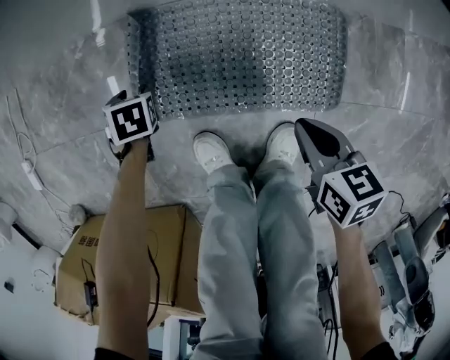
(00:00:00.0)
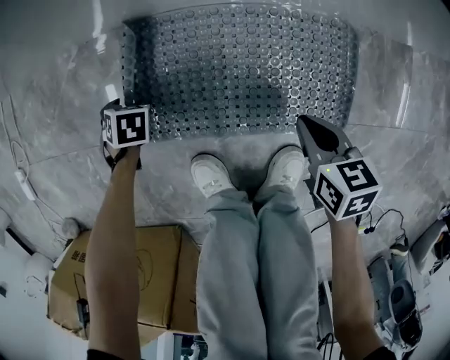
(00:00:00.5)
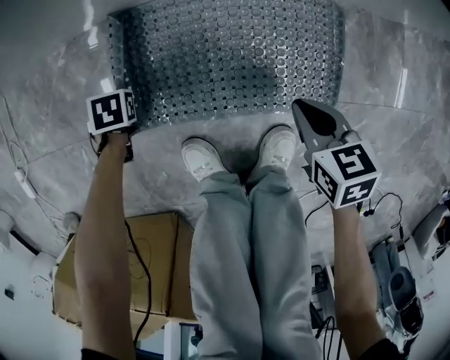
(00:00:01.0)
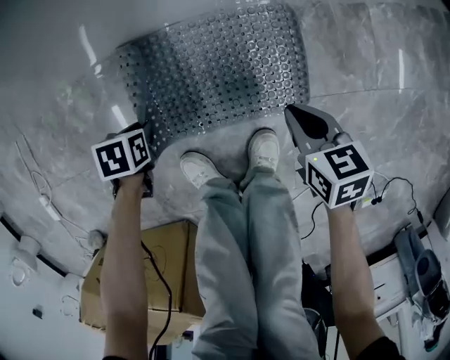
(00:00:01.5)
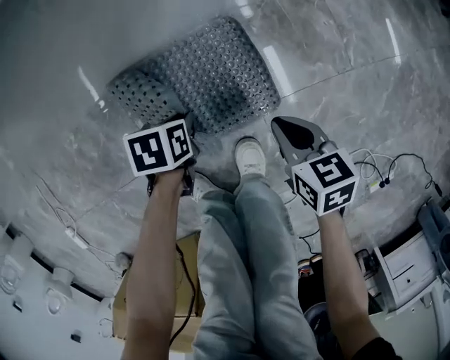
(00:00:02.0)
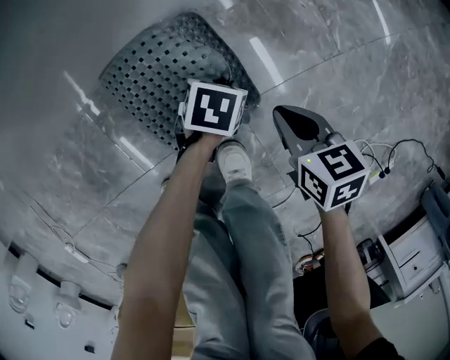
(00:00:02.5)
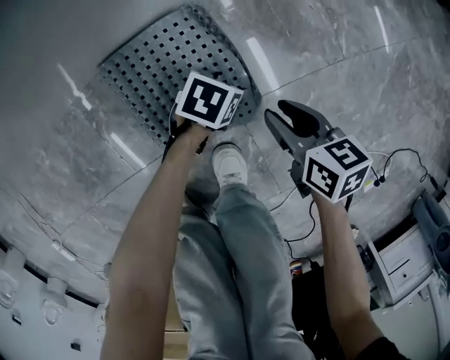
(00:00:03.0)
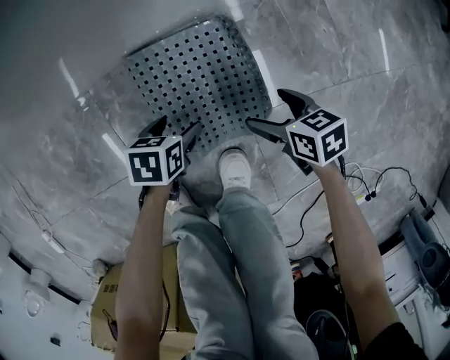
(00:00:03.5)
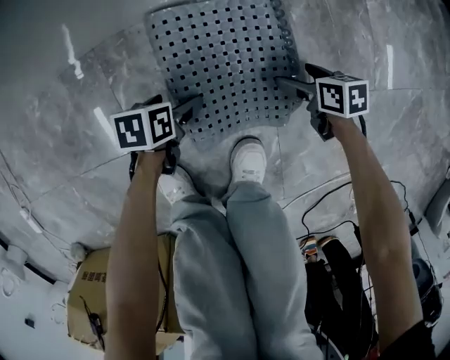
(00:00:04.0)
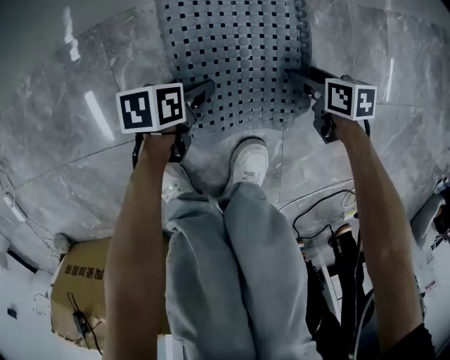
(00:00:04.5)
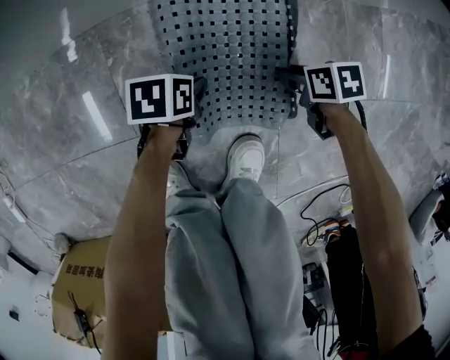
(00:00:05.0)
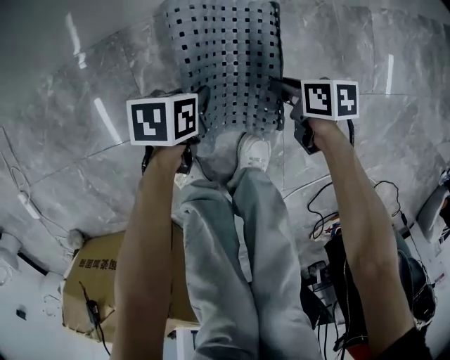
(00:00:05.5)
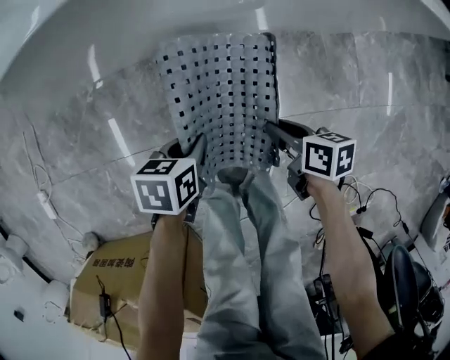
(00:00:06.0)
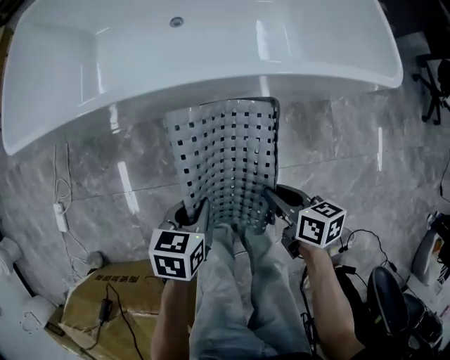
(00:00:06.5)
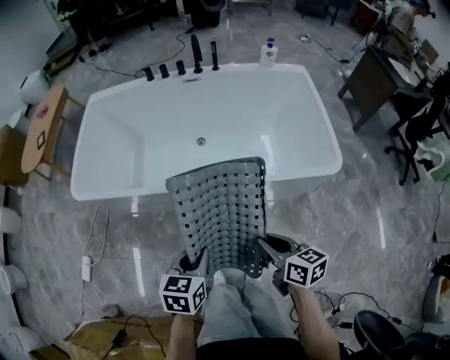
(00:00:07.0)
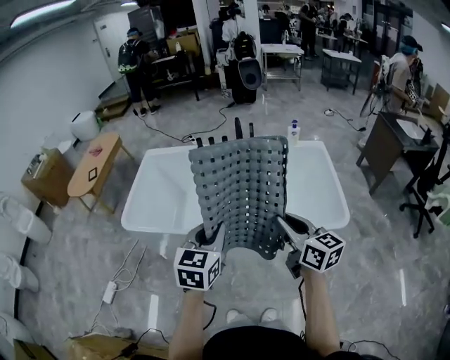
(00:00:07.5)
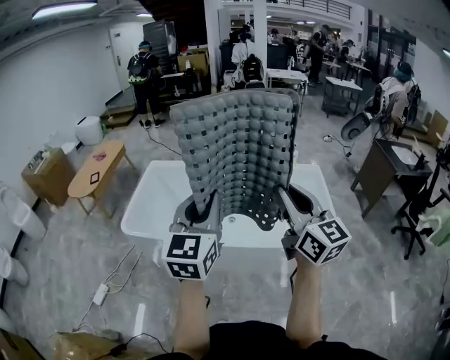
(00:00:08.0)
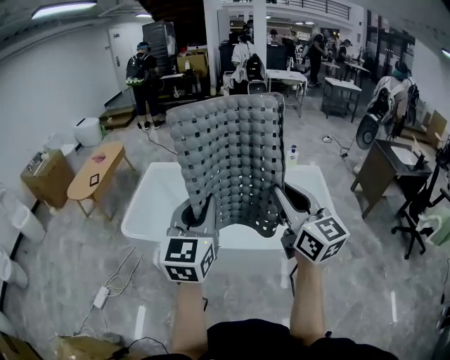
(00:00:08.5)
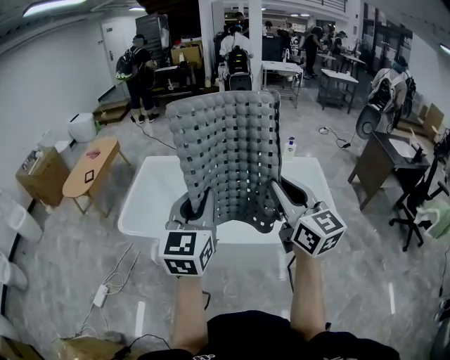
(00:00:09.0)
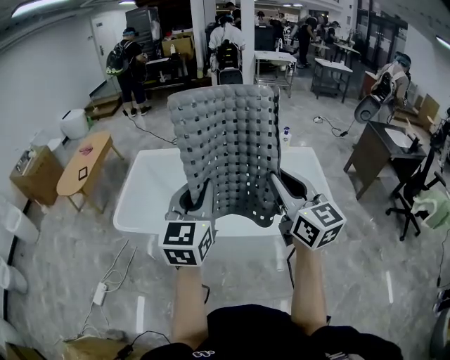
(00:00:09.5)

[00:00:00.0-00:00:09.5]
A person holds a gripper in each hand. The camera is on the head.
00:00:00.0 to 00:00:02.0: The left gripper ends up about 35 cm from where it was, and changes its angle by some 30 degrees; the right gripper goes downward and returns, about 10 cm each way.
00:00:02.0 to 00:00:04.0: The right gripper moves downward, some 25 cm, and opens its fingers, while the left gripper goes up and down, about 15 cm each way, reversing 2 times, and opens up.
00:00:04.0 to 00:00:05.5: The left gripper goes some 10 cm upward, and closes. The right gripper shifts by roughly 10 cm, and closes up.
00:00:05.5 to 00:00:07.5: Both grippers travel together upward, some 90 cm. The left gripper points its fingers roughly 40 degrees further upward; the right gripper angles its fingers upward, by about 50 degrees.
00:00:07.5 to 00:00:09.5: Both grippers travel together upward, about 15 cm. The left gripper turns by roughly 20 degrees, while the right gripper rotates roughly 20 degrees.

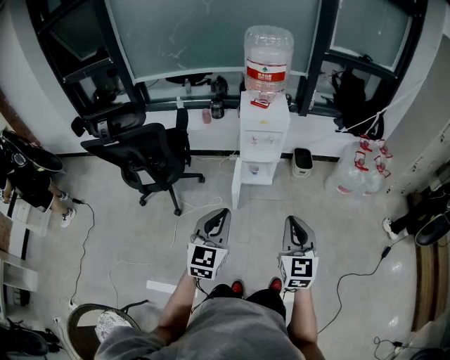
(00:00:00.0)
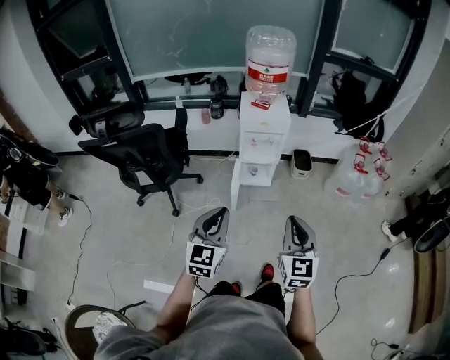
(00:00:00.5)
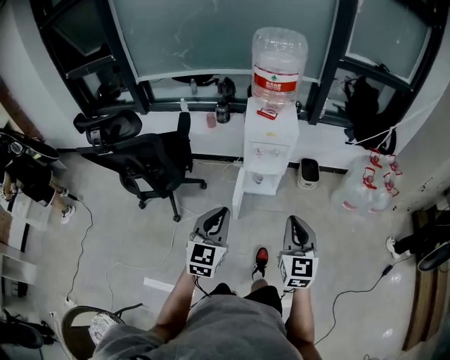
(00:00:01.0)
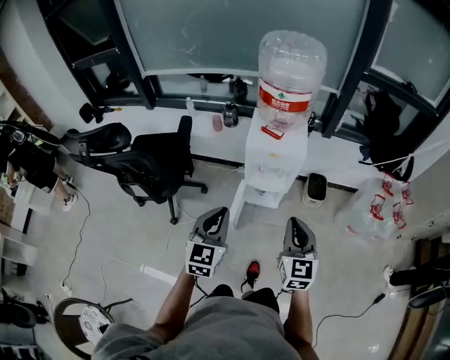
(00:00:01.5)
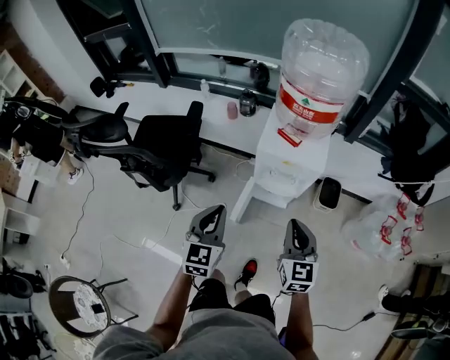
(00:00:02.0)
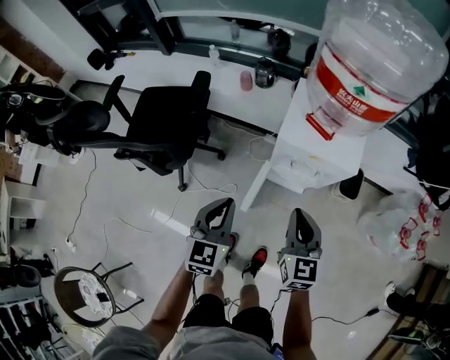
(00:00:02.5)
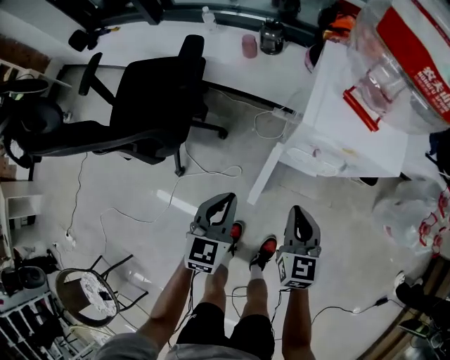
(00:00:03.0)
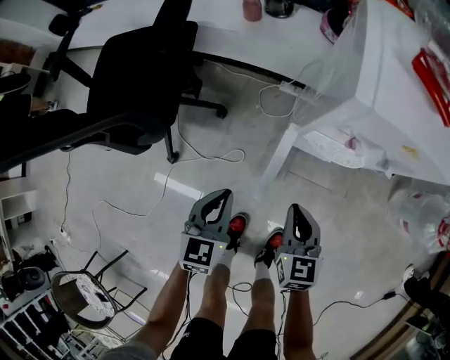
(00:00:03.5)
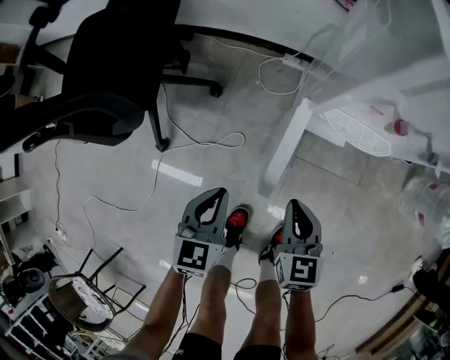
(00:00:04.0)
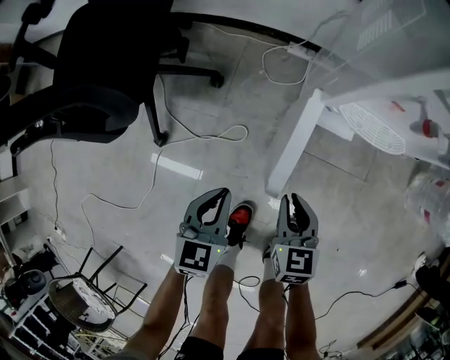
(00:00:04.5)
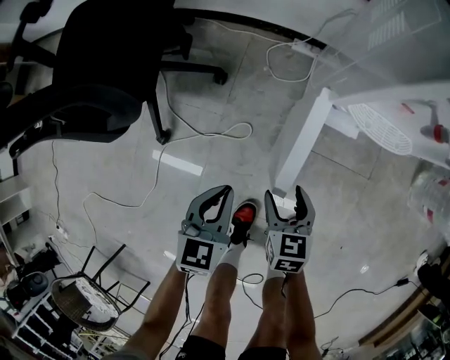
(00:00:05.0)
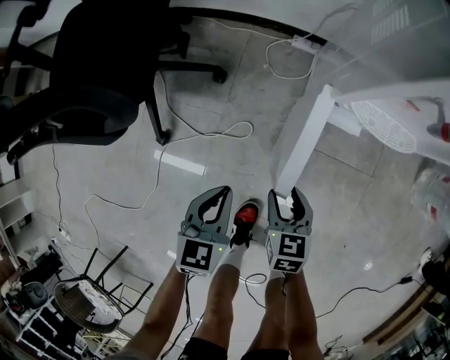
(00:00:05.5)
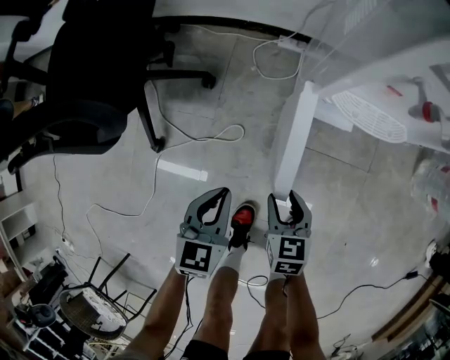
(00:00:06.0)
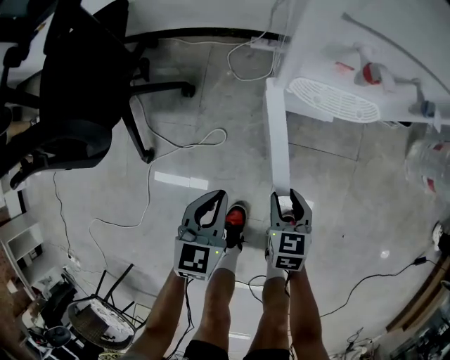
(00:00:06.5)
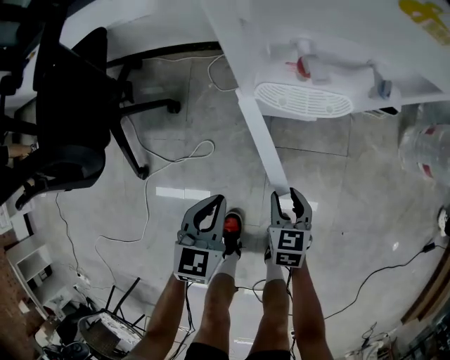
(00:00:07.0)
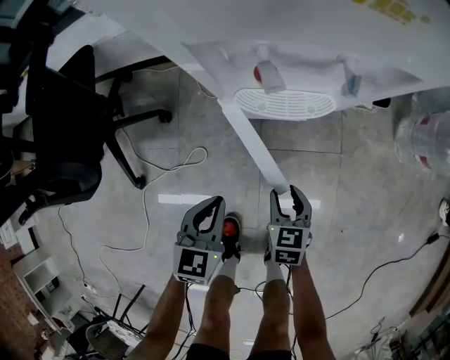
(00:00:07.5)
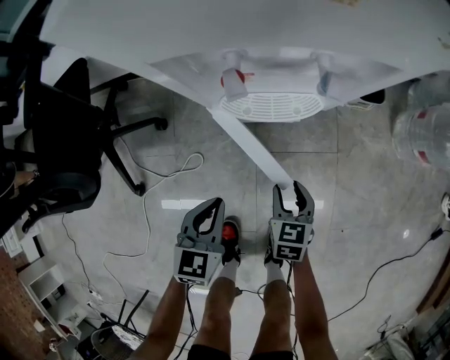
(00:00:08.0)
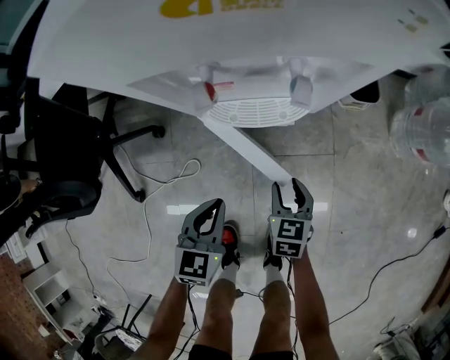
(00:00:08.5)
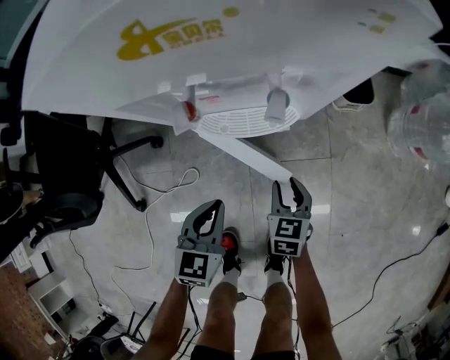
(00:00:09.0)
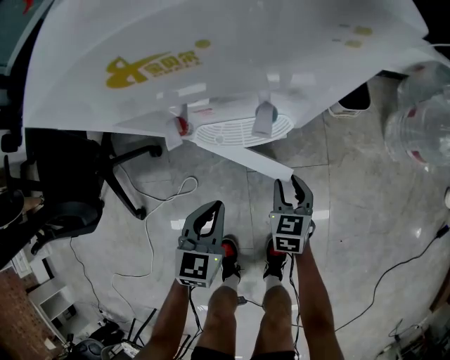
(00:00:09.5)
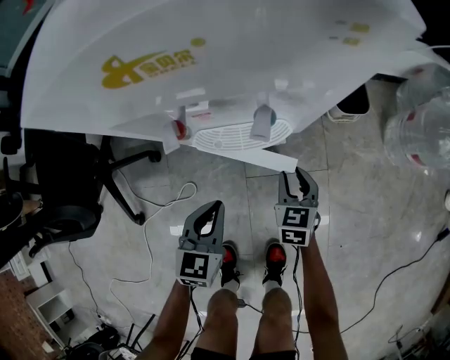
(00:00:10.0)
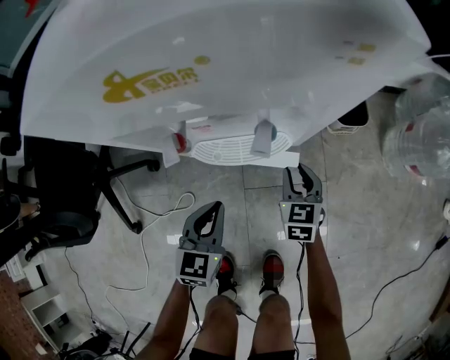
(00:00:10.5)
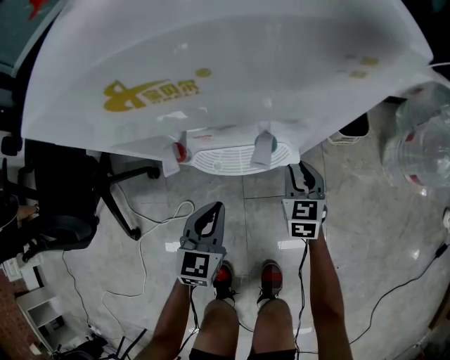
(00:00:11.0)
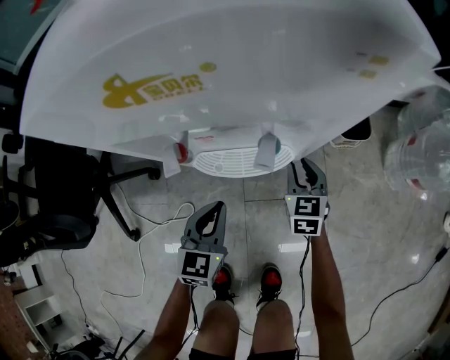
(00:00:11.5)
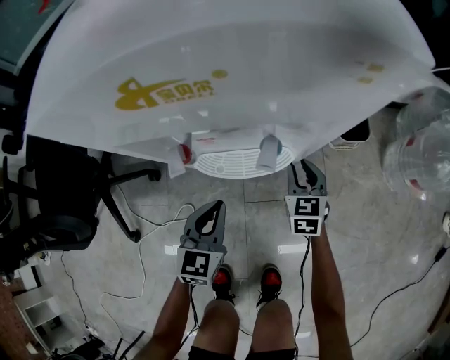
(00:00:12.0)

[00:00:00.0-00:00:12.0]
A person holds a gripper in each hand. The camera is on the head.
00:00:00.0 to 00:00:02.0: Both grippers move forward, about 35 cm. The left gripper turns by about 20 degrees.
00:00:02.0 to 00:00:04.0: The grippers both shift downward by about 50 cm. The left gripper changes its angle by roughly 20 degrees, while the right gripper rotates about 20 degrees.
00:00:04.0 to 00:00:06.0: The left gripper heads downward, covering roughly 5 cm. The right gripper travels downward by about 10 cm, and opens its fingers.
00:00:06.0 to 00:00:08.0: The two grippers go approximately 15 cm to the right.
00:00:08.0 to 00:00:10.0: The right gripper shifts roughly 10 cm forward and to the right. The left gripper heads forward, covering about 5 cm.
00:00:10.0 to 00:00:12.0: The right gripper travels forward by approximately 10 cm. The left gripper travels forward by approximately 5 cm.

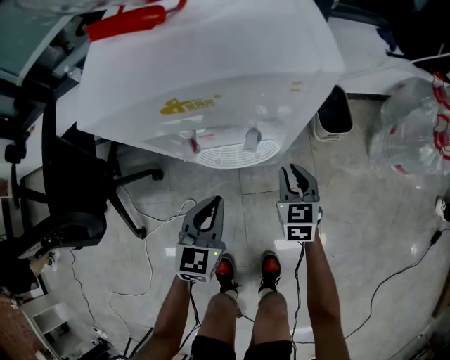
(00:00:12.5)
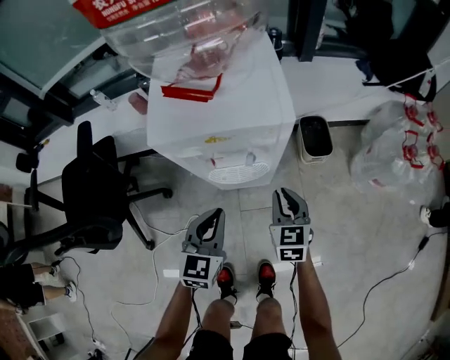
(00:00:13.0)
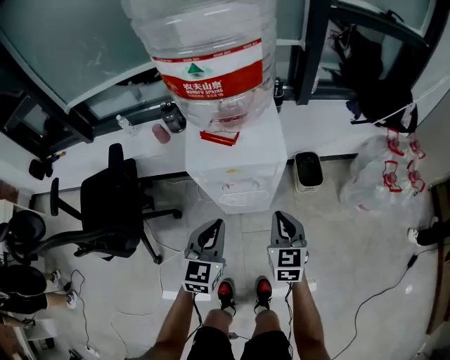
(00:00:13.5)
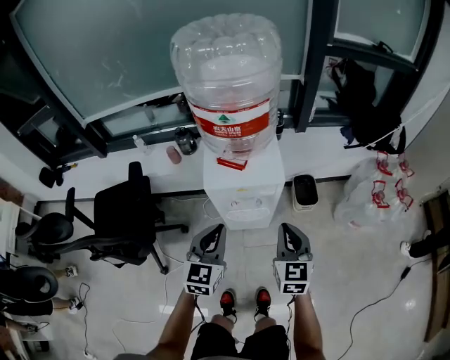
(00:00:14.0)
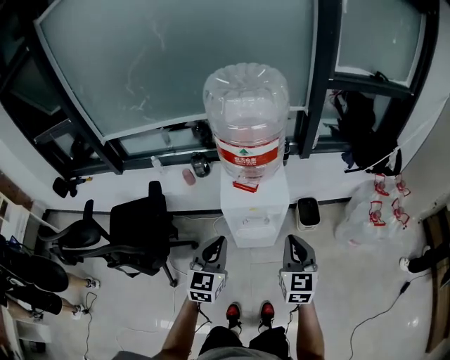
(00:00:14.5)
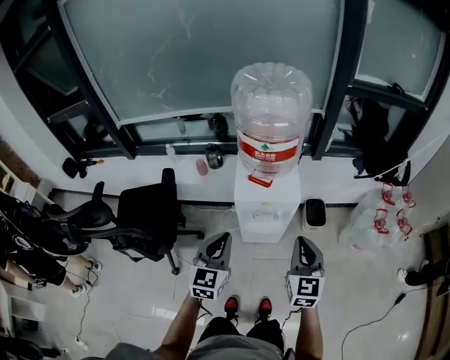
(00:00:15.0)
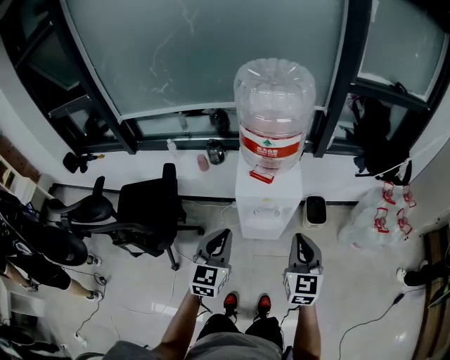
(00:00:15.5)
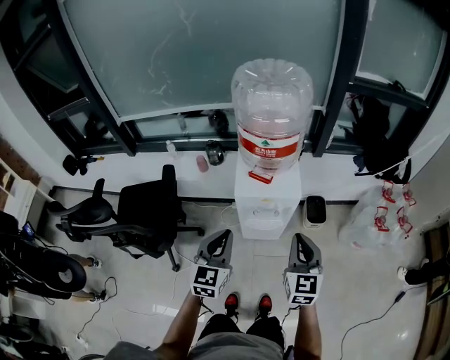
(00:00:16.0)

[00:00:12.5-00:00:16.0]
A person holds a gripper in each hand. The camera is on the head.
00:00:12.5 to 00:00:14.5: Both grippers move upward, some 50 cm.
00:00:14.5 to 00:00:16.0: There are only small adjustments of the grippers.

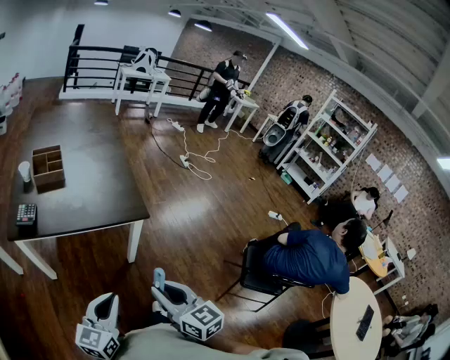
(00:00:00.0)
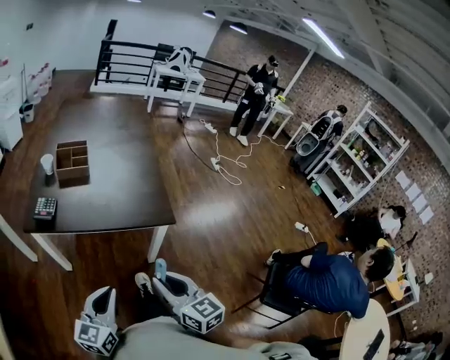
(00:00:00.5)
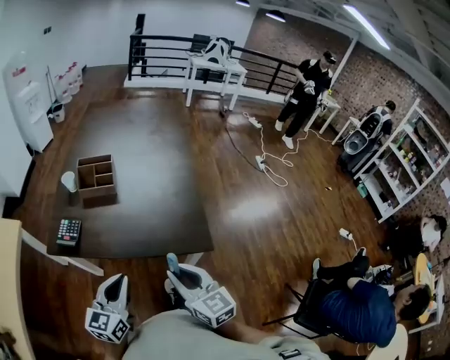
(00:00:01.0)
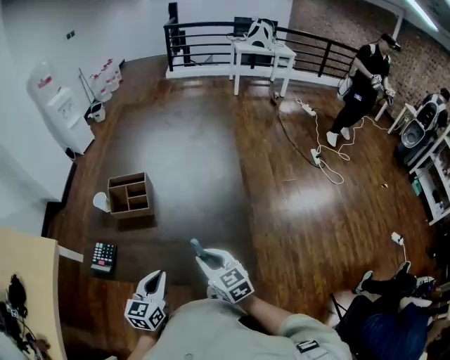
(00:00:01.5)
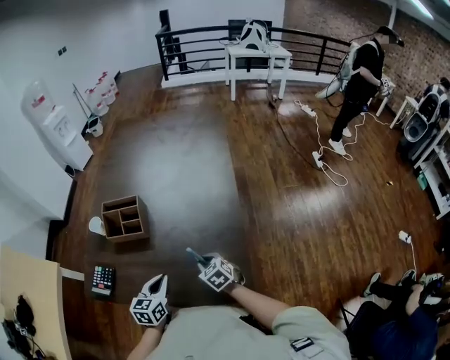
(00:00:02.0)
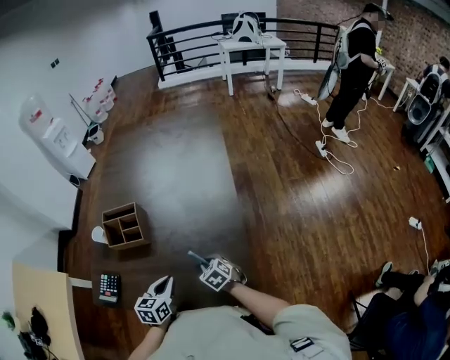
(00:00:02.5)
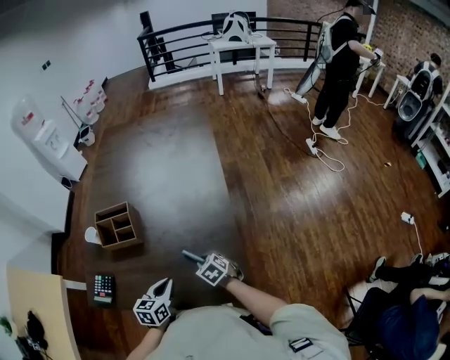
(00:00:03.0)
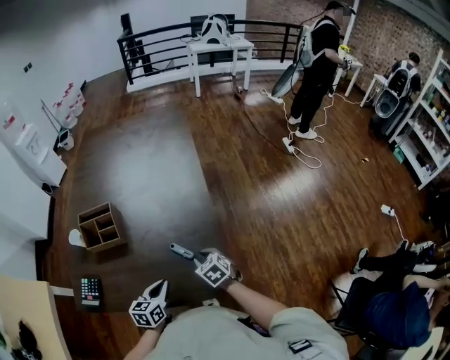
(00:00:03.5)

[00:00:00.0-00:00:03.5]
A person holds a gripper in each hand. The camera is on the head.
00:00:00.0 to 00:00:02.0: The right gripper moves about 50 cm, and points its fingers roughly 30 degrees further downward. The left gripper shifts by approximately 40 cm, and changes its angle by roughly 30 degrees.
00:00:02.0 to 00:00:03.5: The grippers both shift to the right by some 5 cm.
